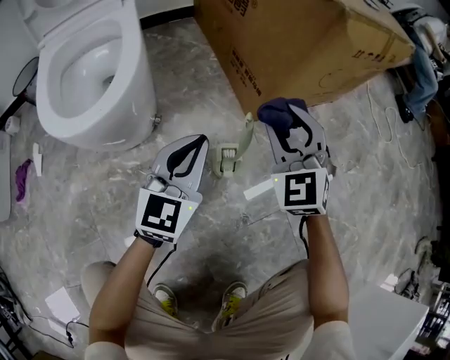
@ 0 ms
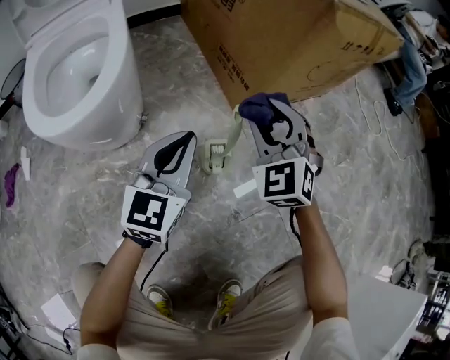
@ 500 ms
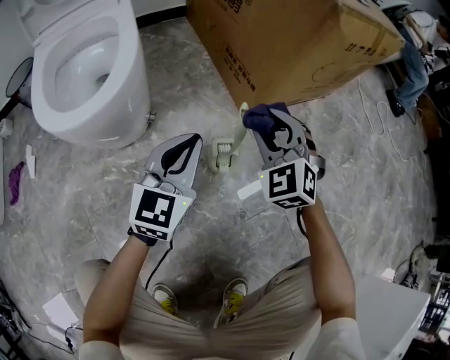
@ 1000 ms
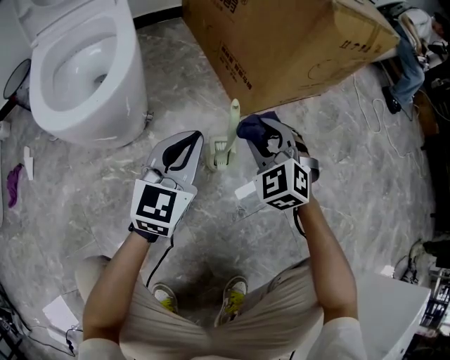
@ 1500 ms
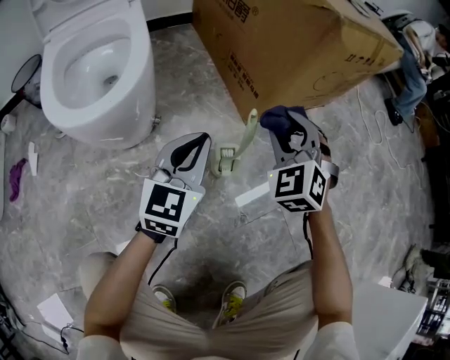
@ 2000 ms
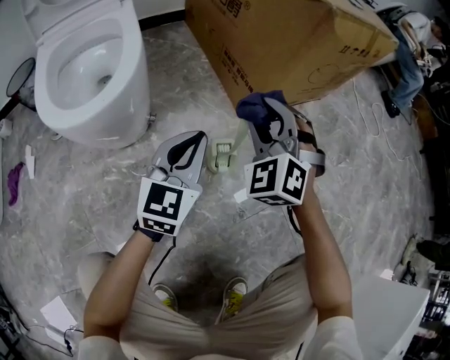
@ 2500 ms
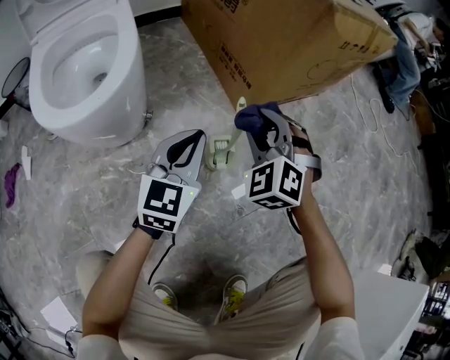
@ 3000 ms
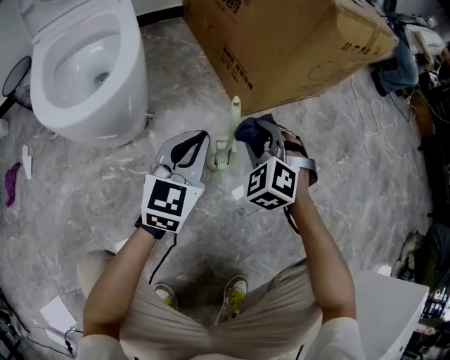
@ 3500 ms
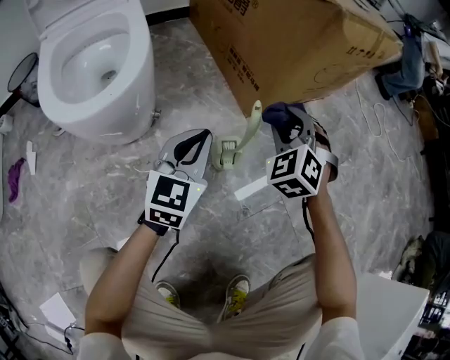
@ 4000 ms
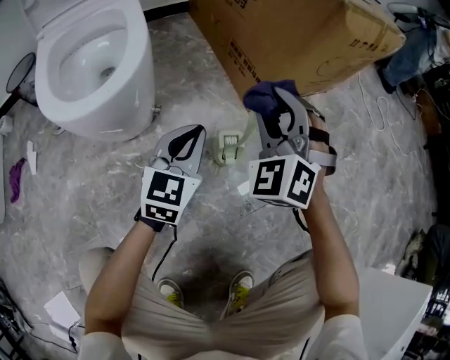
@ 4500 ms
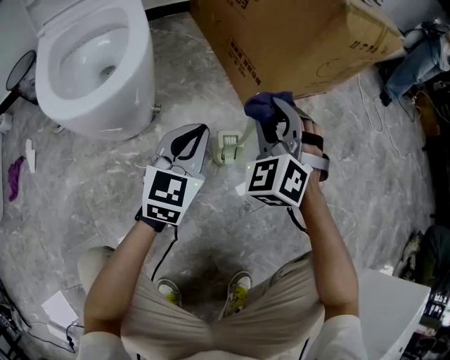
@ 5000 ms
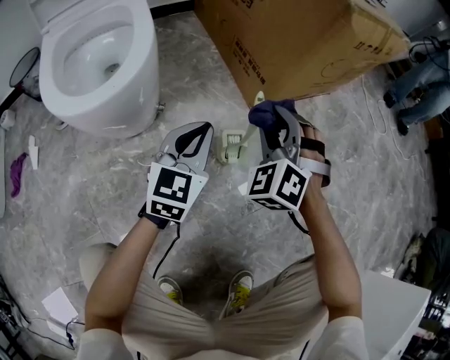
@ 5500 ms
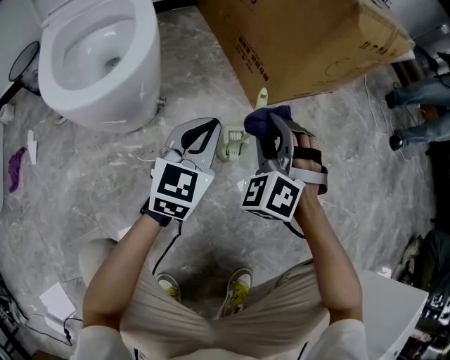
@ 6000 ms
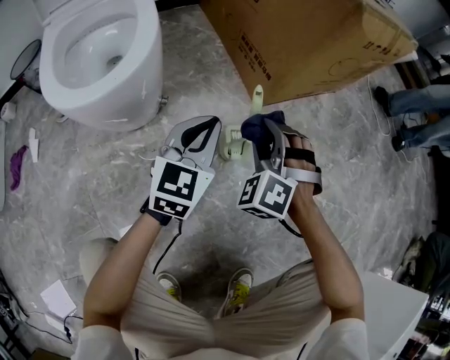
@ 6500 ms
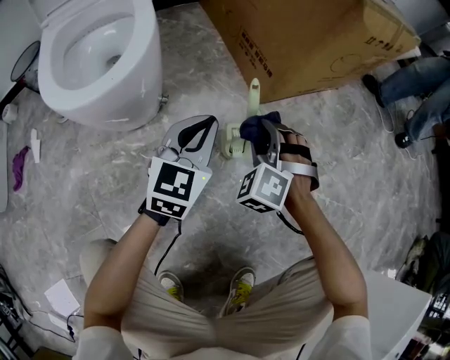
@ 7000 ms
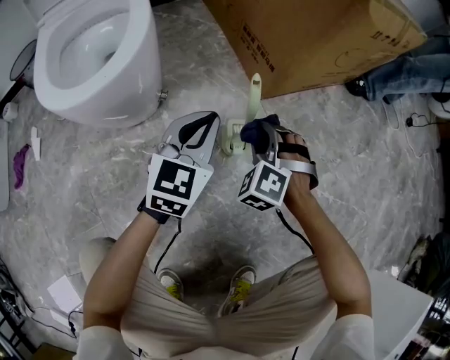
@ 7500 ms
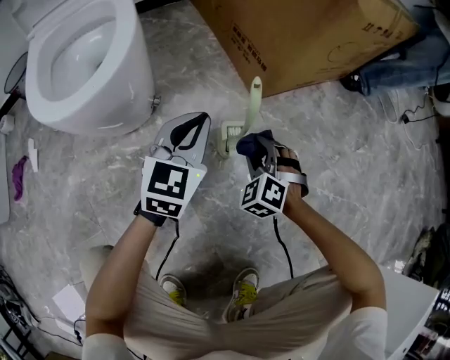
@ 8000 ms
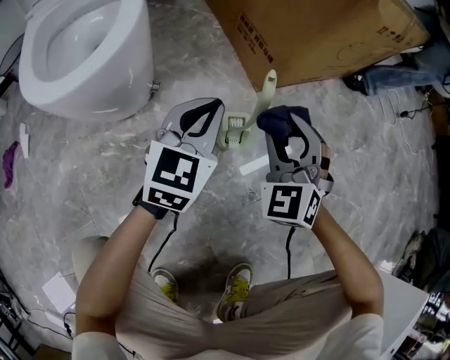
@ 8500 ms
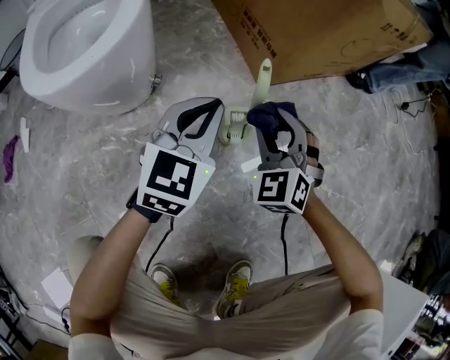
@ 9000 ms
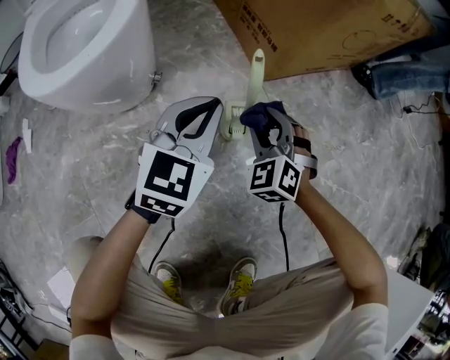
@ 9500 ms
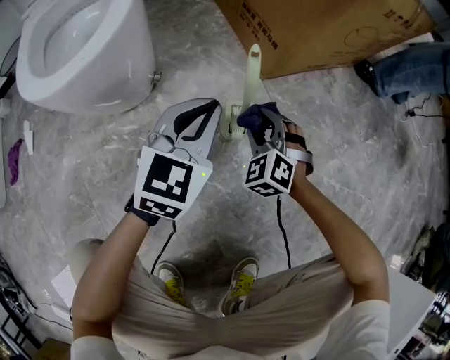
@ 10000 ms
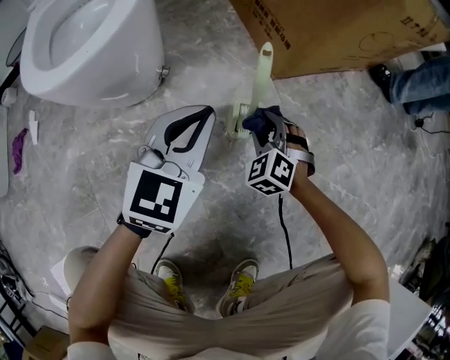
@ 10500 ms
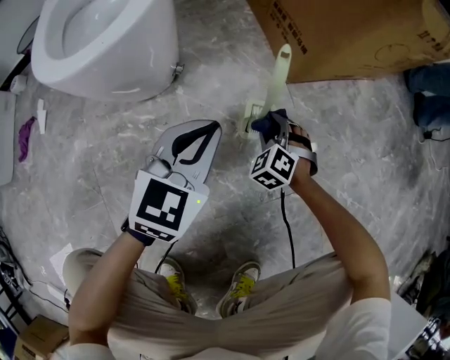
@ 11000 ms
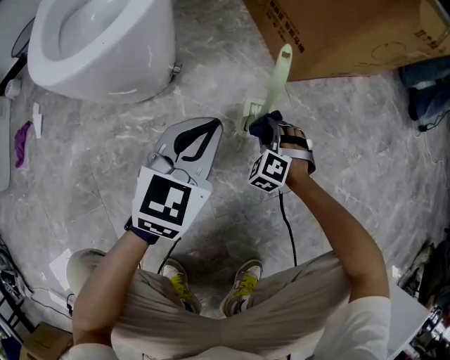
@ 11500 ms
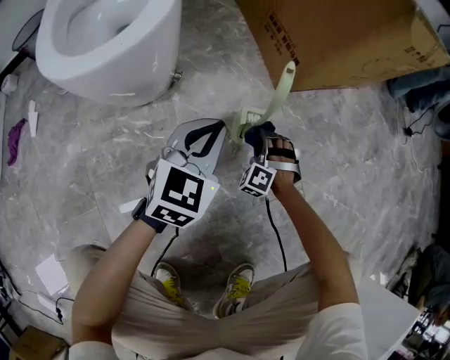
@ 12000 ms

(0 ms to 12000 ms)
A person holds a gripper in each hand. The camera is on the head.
0 ms - 2000 ms: The right gripper goes downward and returns, roughly 10 cm each way.
4000 ms - 6000 ms: The right gripper moves backward and to the left, roughly 10 cm.
6000 ms - 8000 ms: The right gripper heads downward, covering about 15 cm.
8000 ms - 10000 ms: The right gripper travels upward and back again, some 15 cm each way.
10000 ms - 12000 ms: The left gripper ends up about 5 cm from where it was, while the right gripper shifts roughly 10 cm downward, and turns by roughly 30 degrees.

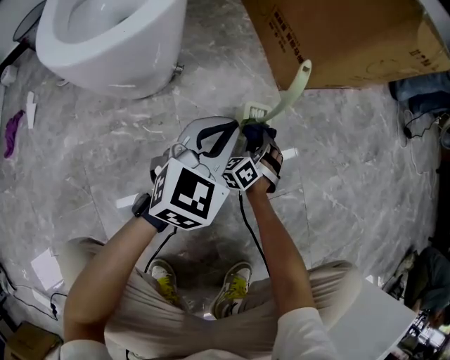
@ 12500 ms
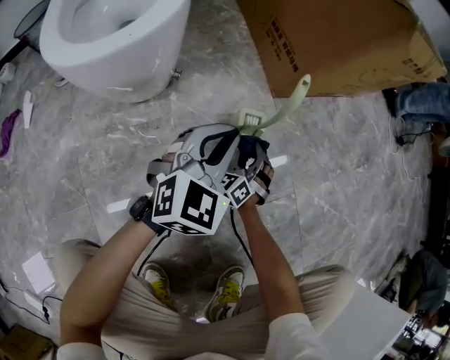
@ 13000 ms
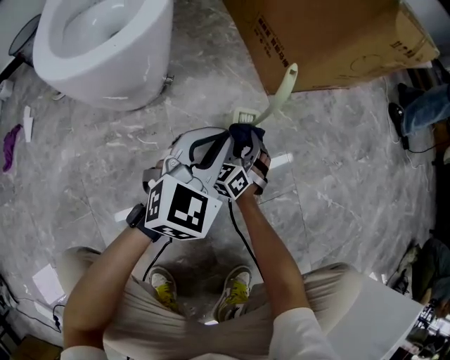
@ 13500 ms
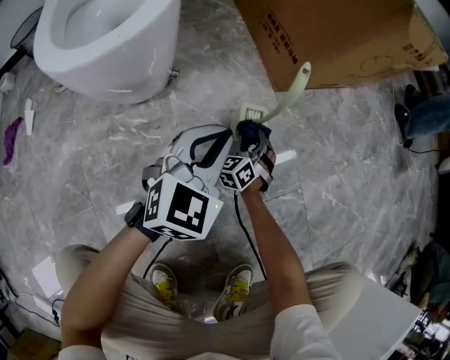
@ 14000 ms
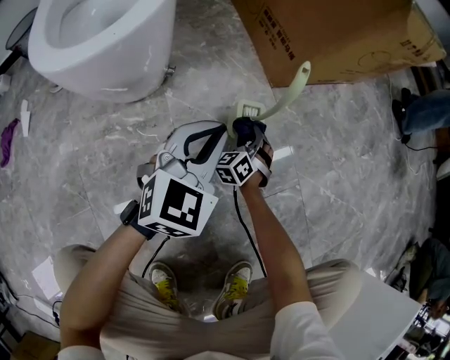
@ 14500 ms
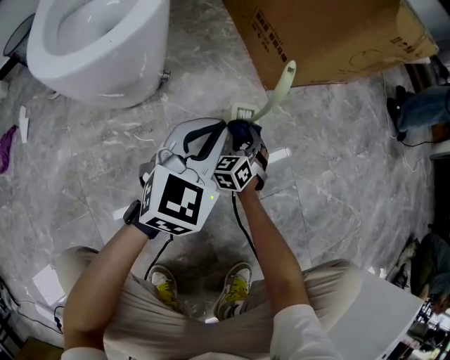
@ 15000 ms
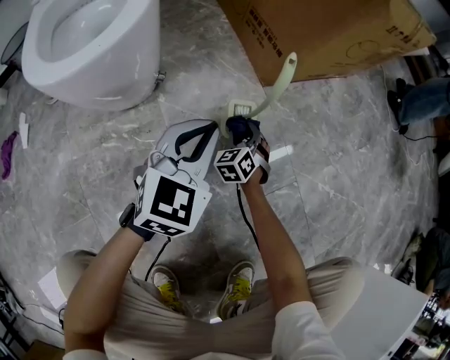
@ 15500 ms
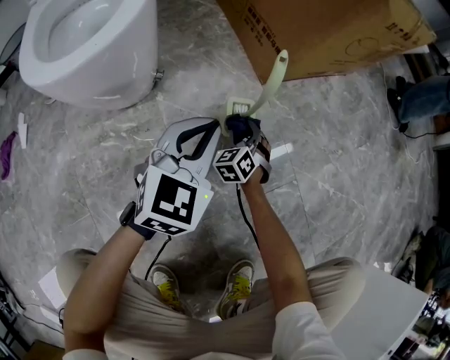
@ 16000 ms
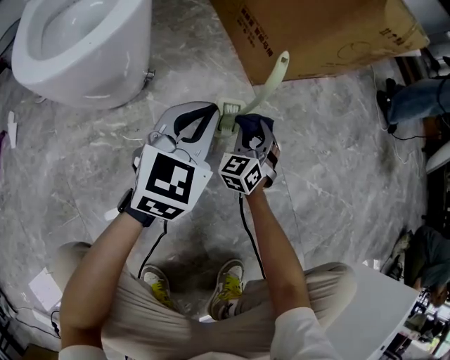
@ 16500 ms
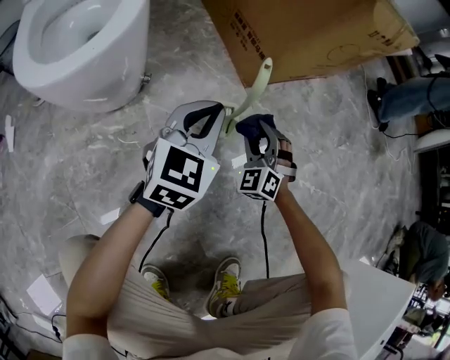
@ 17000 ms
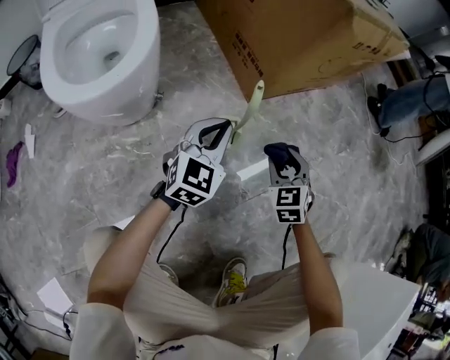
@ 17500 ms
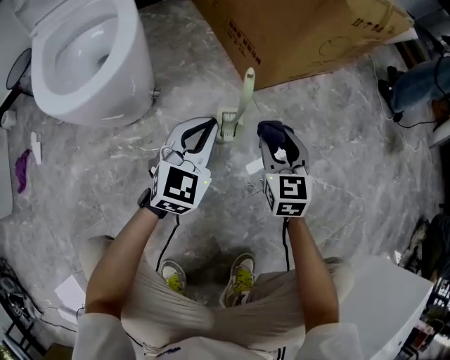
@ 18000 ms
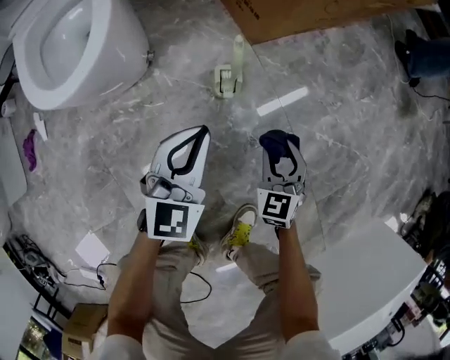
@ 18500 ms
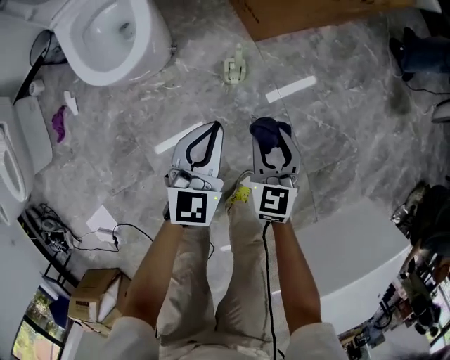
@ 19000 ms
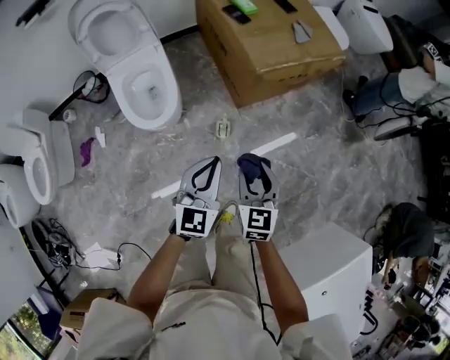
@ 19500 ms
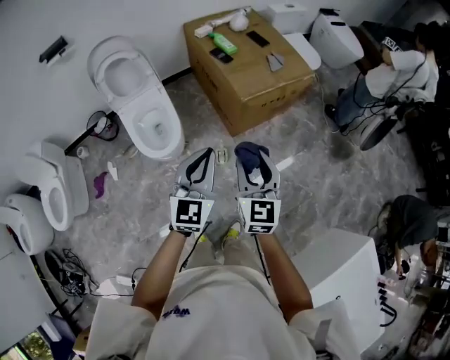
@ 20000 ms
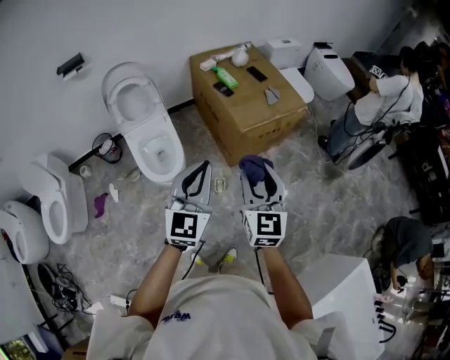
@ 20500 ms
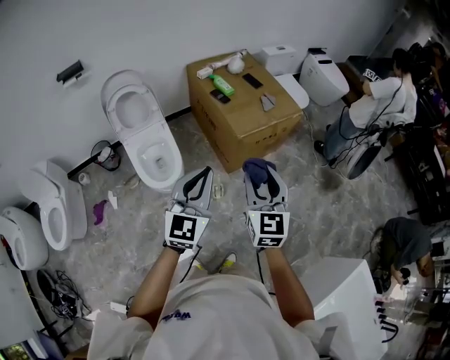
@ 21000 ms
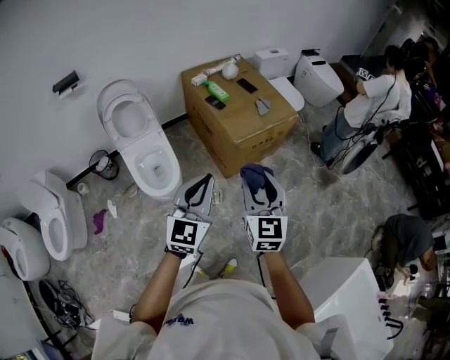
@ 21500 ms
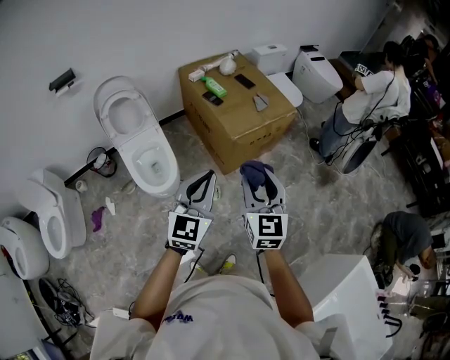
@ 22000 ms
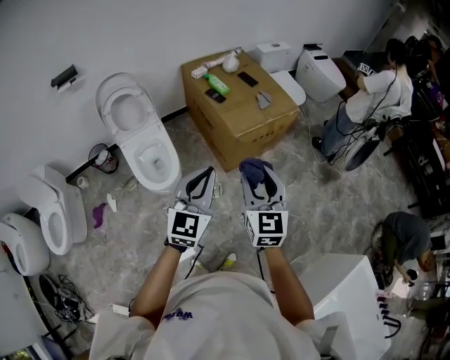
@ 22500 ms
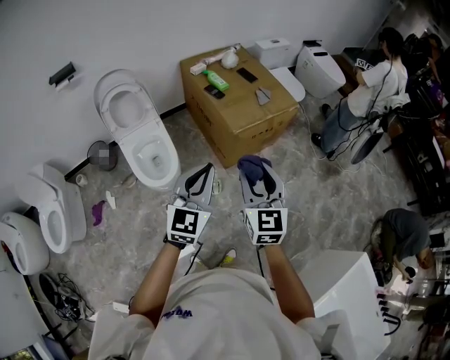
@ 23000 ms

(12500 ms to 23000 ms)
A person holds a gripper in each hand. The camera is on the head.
14500 ms - 16500 ms: The right gripper goes roughly 10 cm upward.
16500 ms - 19000 ms: The left gripper travels upward by roughly 25 cm. Meanwhile the right gripper goes approximately 40 cm upward and backward, and turns by about 40 degrees.
19000 ms - 21000 ms: Both grippers move upward, roughly 60 cm. The right gripper rotates some 30 degrees; the left gripper swivels roughly 20 degrees.
21000 ms - 23000 ms: The grippers make only small movements.

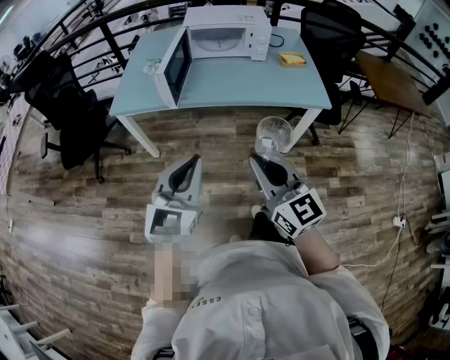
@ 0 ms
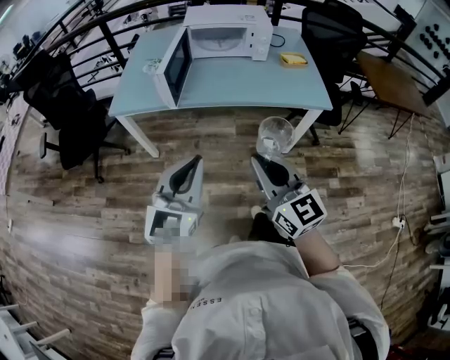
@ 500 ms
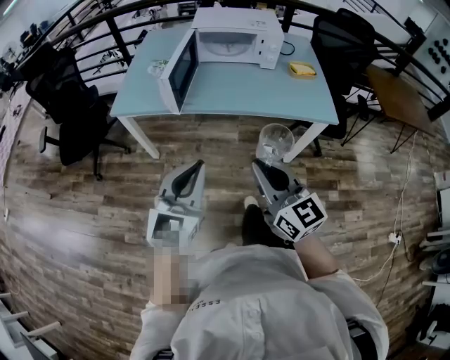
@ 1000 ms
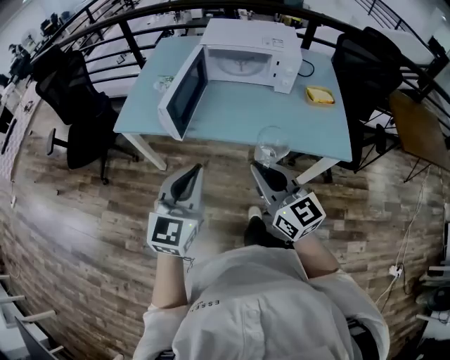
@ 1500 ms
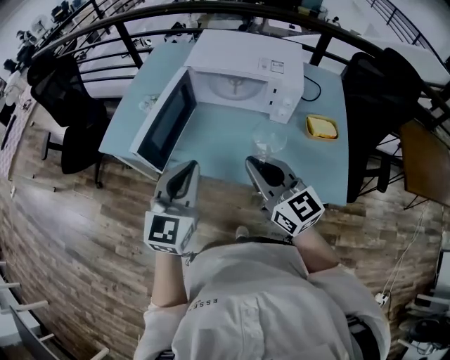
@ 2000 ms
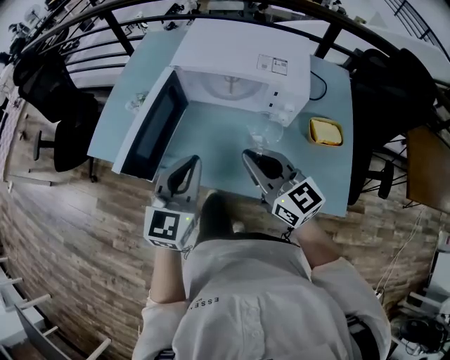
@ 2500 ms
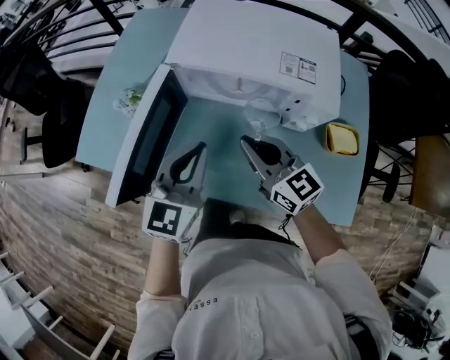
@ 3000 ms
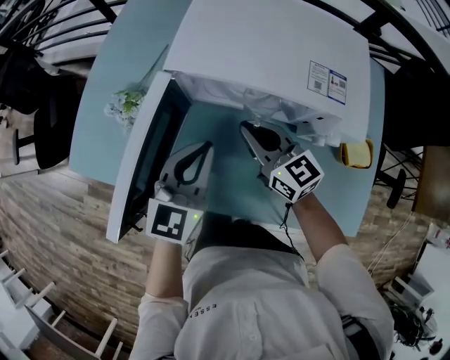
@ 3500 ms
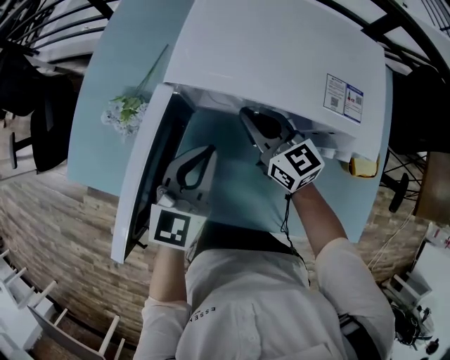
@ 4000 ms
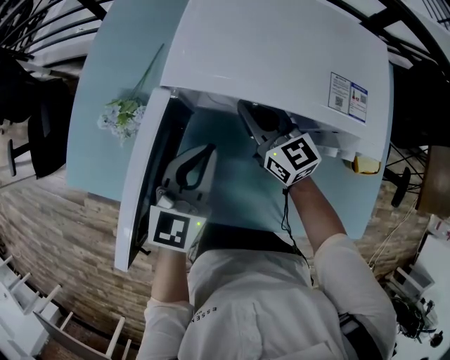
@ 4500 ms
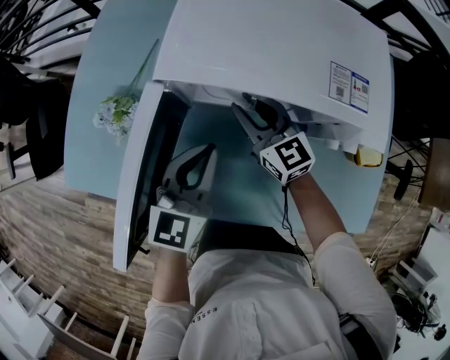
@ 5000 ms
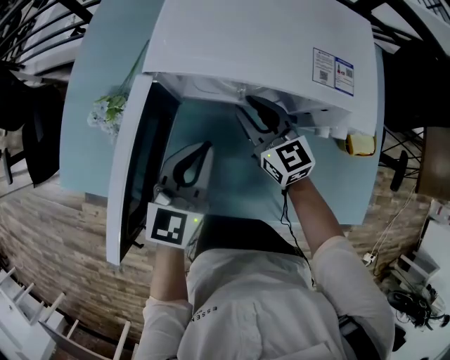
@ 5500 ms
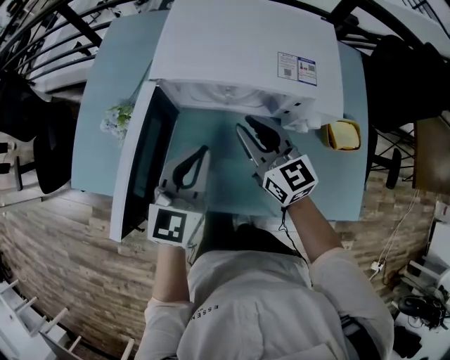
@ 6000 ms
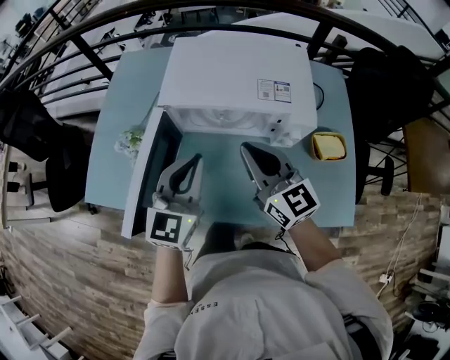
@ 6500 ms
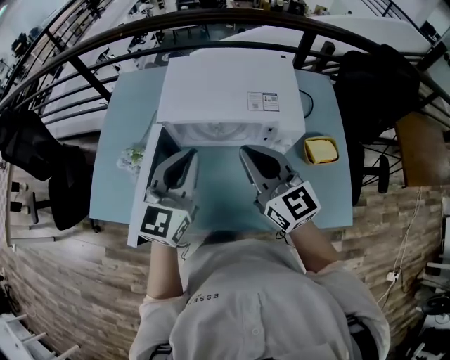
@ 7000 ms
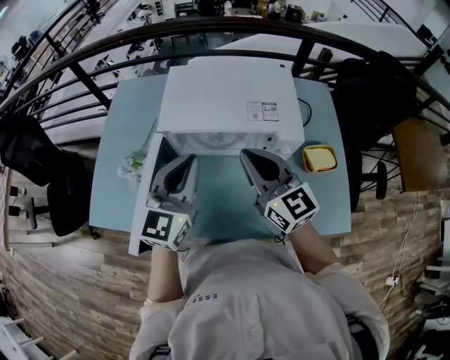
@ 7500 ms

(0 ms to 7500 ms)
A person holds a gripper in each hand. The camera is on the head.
0 ms - 2000 ms: The two grippers go roughly 35 cm forward.
2000 ms - 4000 ms: Both grippers travel together forward and downward, some 35 cm.
4000 ms - 5500 ms: The right gripper opens.
5500 ms - 7500 ms: The left gripper moves upward, approximately 20 cm, while the right gripper heads upward and backward, covering about 25 cm, and closes.
